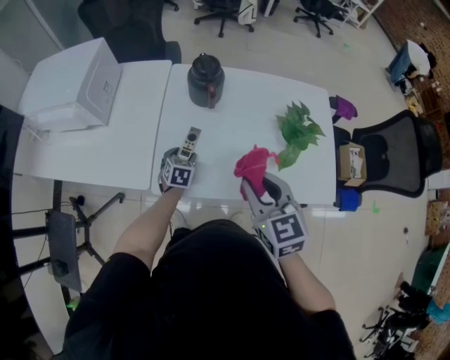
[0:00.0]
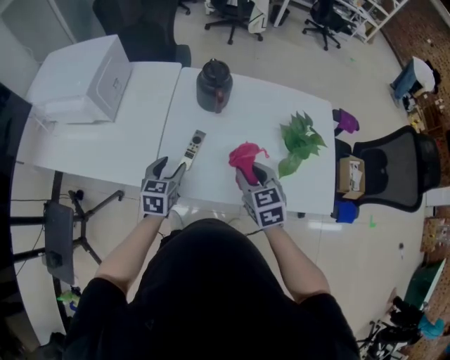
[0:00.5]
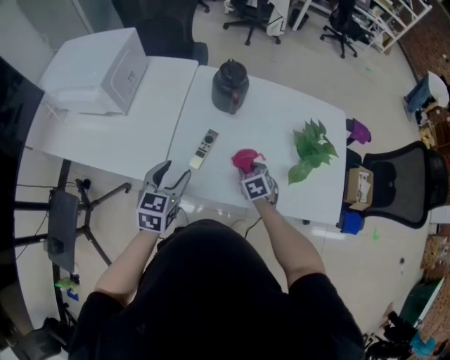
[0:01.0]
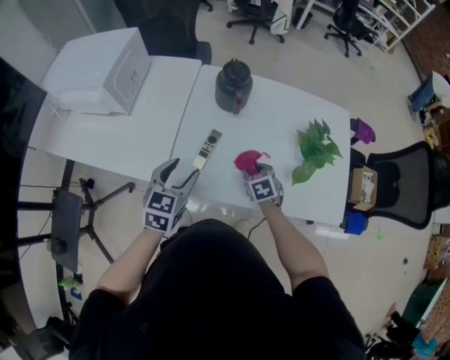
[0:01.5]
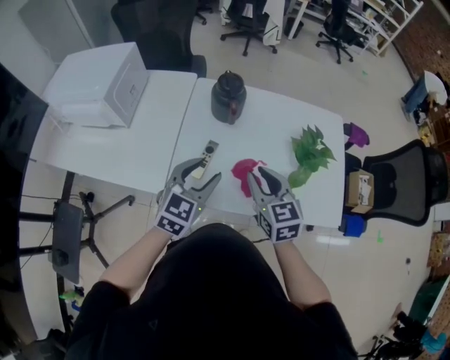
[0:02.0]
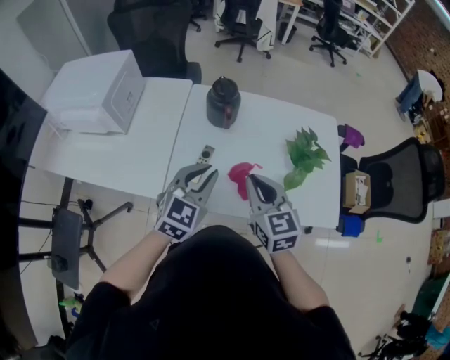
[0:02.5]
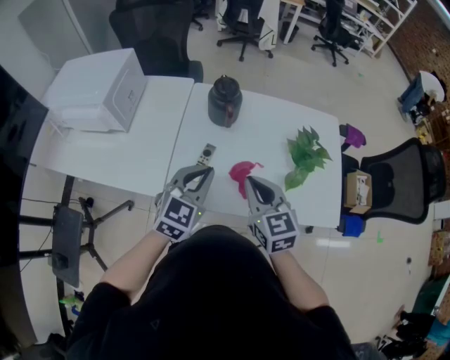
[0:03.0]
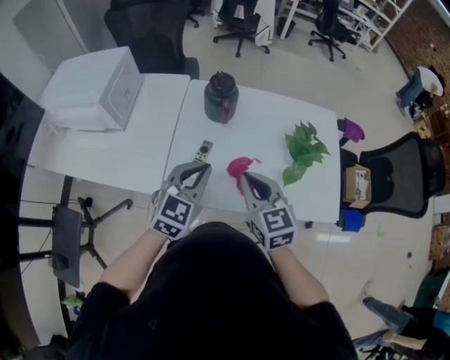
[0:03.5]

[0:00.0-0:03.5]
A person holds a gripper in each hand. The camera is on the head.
0:00.0 to 0:02.0: The right gripper travels forward by roughly 5 cm, and moves roughly 25 cm downward and comes back; the left gripper is displaced upward by roughly 25 cm, and swivels about 30 degrees.
0:02.0 to 0:03.5: The right gripper closes its fingers; the left gripper closes its fingers.

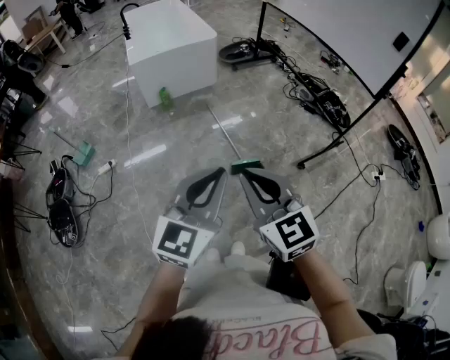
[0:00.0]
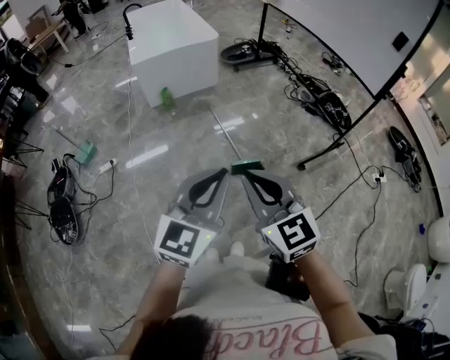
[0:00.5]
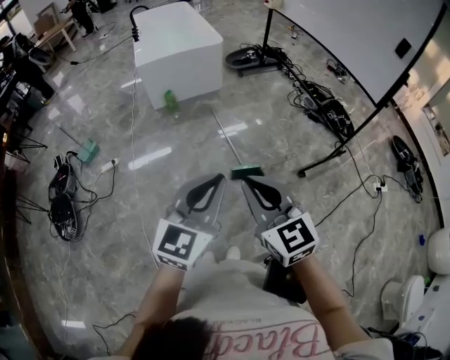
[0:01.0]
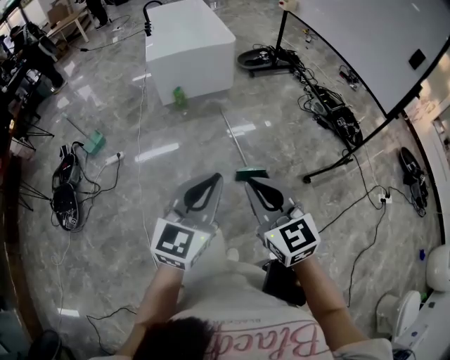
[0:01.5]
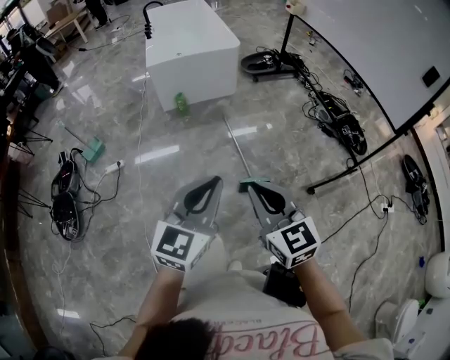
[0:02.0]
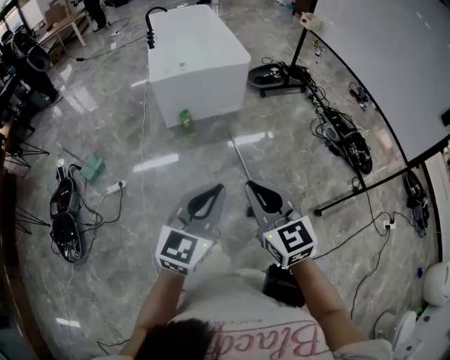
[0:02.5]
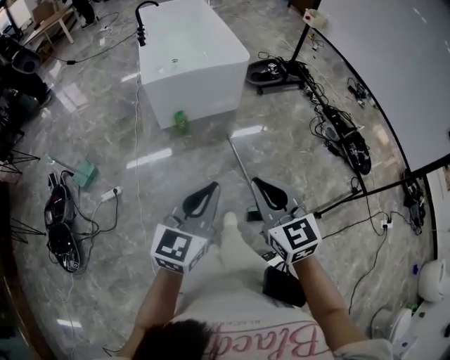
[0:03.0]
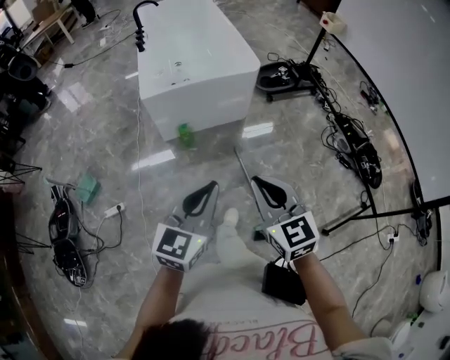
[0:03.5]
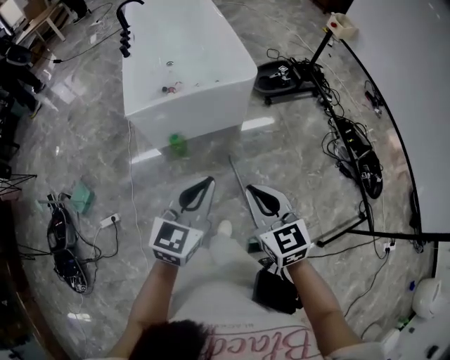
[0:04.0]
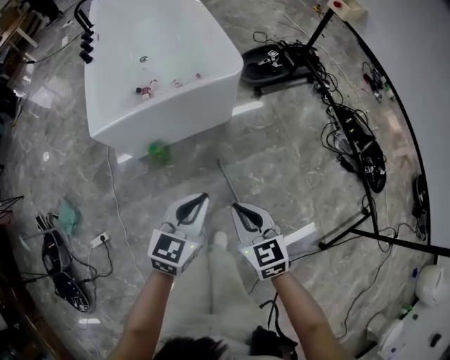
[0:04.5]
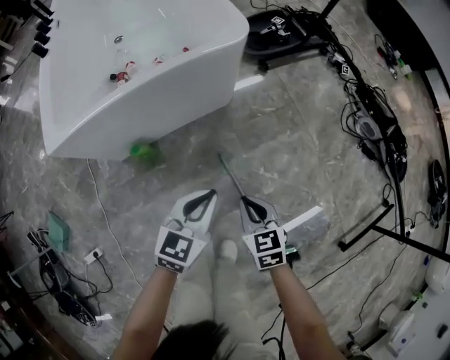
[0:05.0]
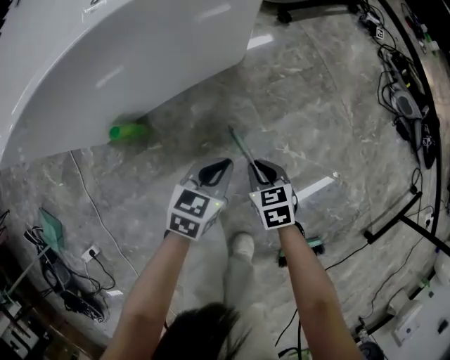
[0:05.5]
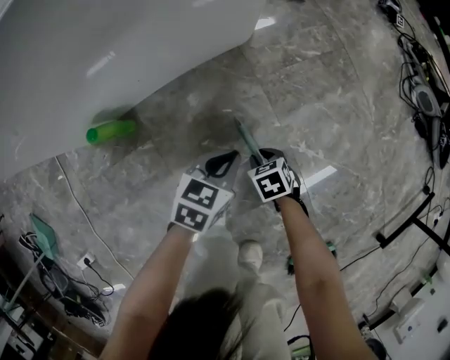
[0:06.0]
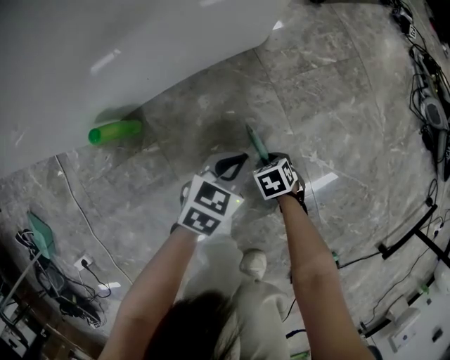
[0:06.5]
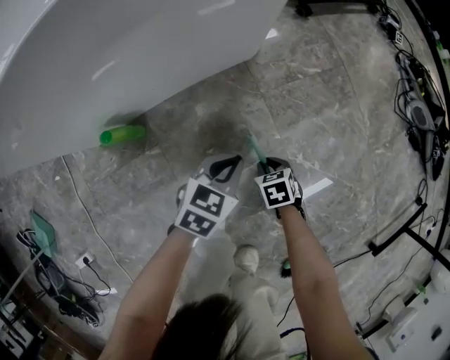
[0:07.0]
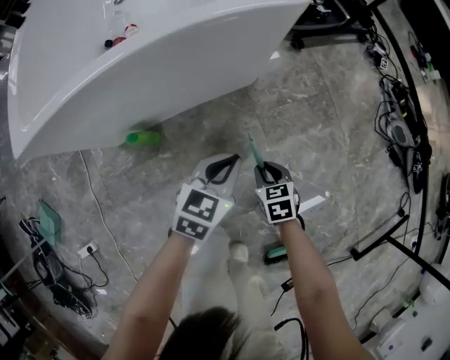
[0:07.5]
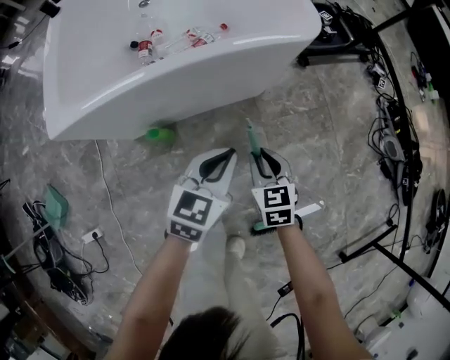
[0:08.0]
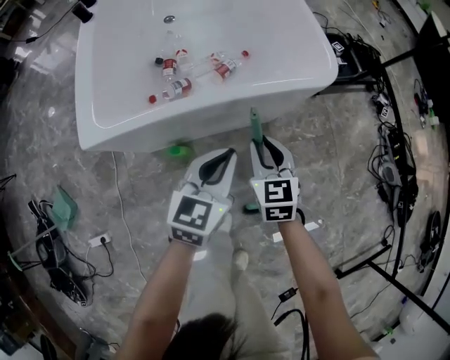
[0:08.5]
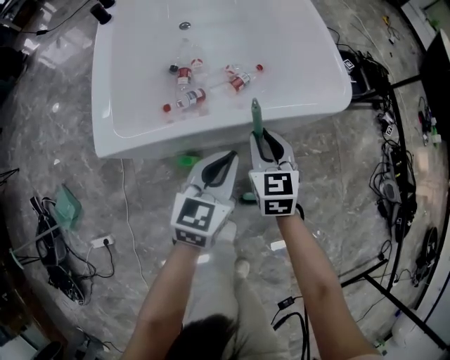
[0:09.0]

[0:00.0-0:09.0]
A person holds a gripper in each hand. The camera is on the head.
0:00.0 to 0:02.0: Both grippers move forward, some 5 cm.
0:02.0 to 0:04.5: The pair of grippers is taken forward, about 50 cm. The left gripper swivels roughly 20 degrees. Meanwhile the right gripper swivels about 20 degrees.
0:04.5 to 0:07.0: The grippers both shift downward by some 50 cm. The right gripper tips its fingers downward by approximately 40 degrees; the left gripper swivels approximately 30 degrees.
0:07.0 to 0:09.0: The left gripper goes about 35 cm upward and to the left, and changes its angle by approximately 40 degrees; the right gripper moves upward, forward and to the left, approximately 50 cm, and tilts its fingers roughly 40 degrees upward.

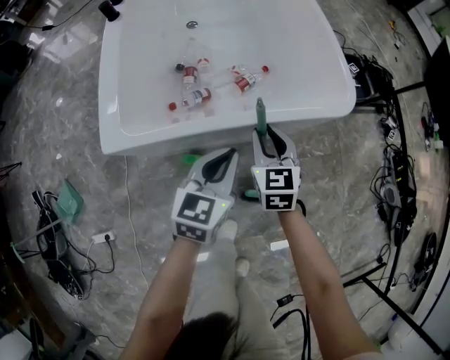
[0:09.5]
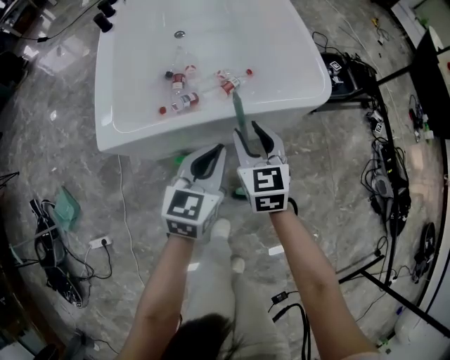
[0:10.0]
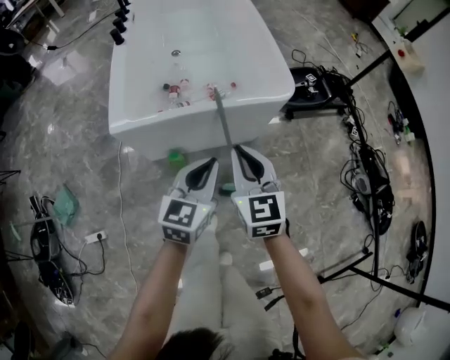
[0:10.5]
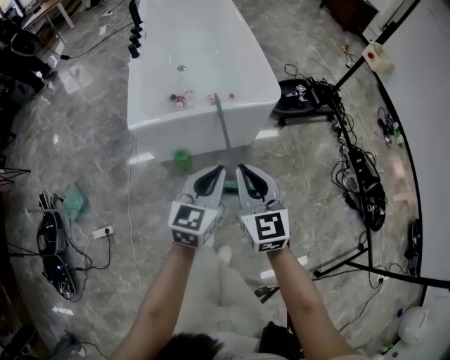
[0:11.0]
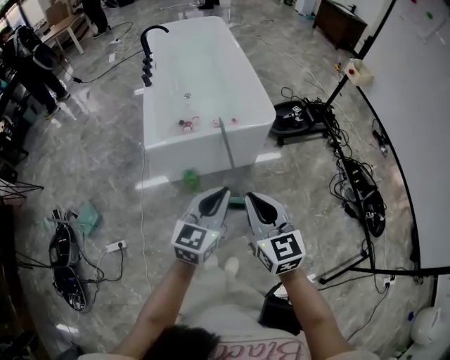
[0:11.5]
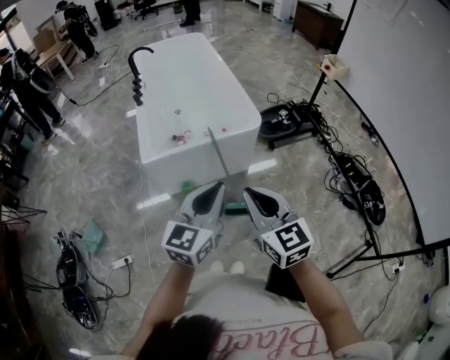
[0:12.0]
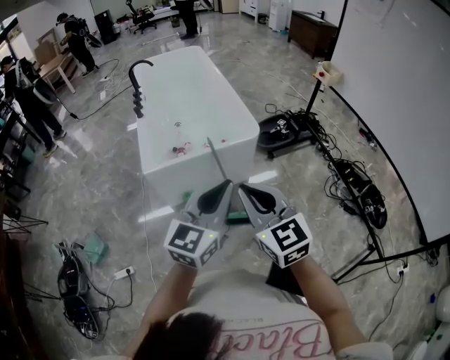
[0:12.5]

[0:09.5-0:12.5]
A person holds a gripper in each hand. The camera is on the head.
0:09.5 to 0:11.0: The left gripper travels backward and upward by about 25 cm. The right gripper is displaced upward and backward by some 35 cm, and closes up.
0:11.0 to 0:12.5: The right gripper travels upward and backward by some 15 cm. Meanwhile the left gripper moves upward, roughly 20 cm, and swivels some 20 degrees.

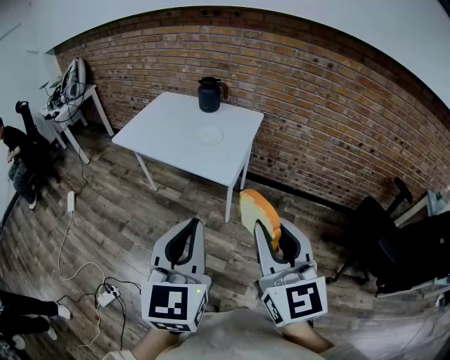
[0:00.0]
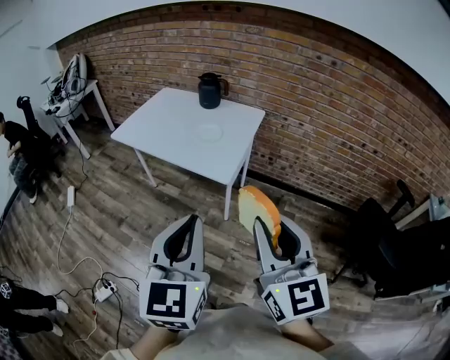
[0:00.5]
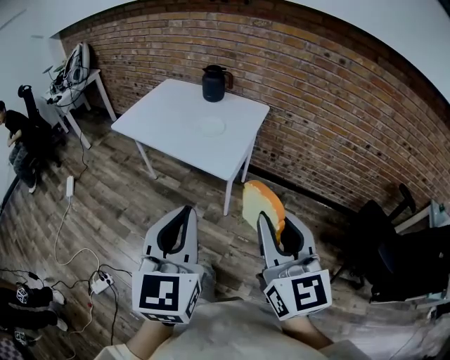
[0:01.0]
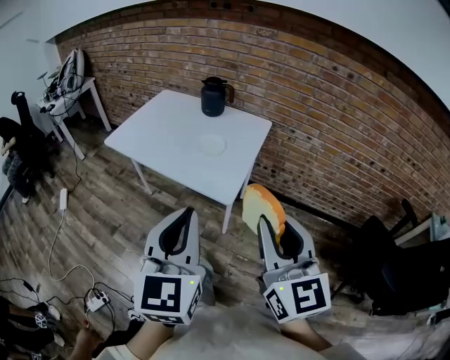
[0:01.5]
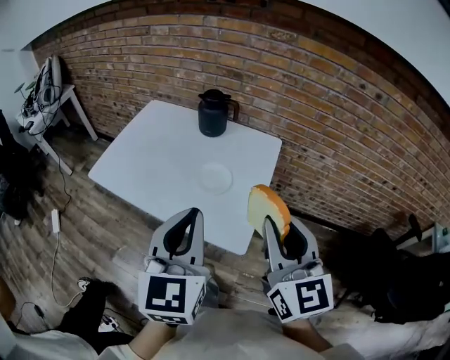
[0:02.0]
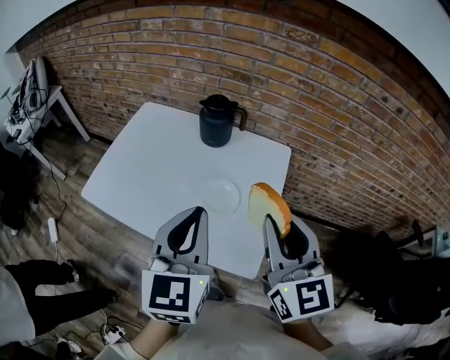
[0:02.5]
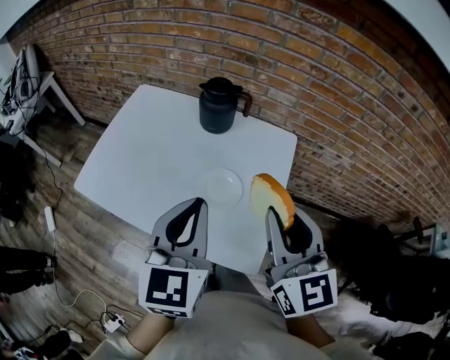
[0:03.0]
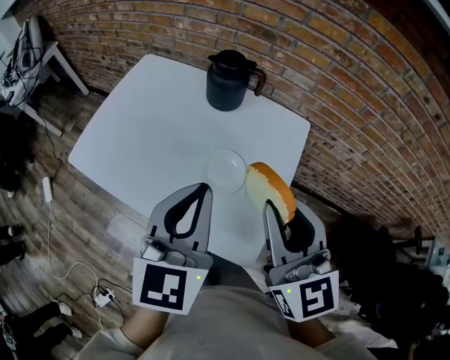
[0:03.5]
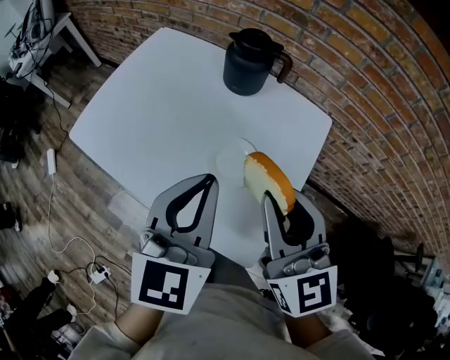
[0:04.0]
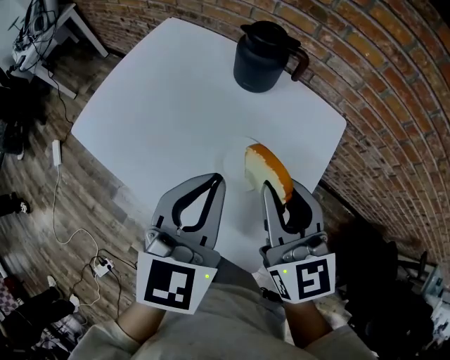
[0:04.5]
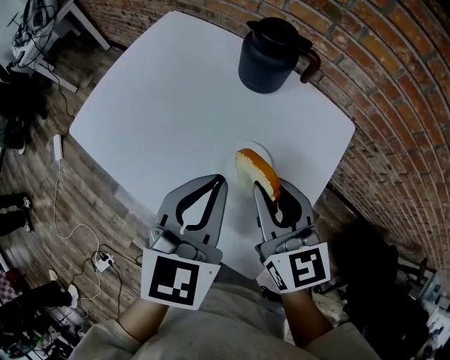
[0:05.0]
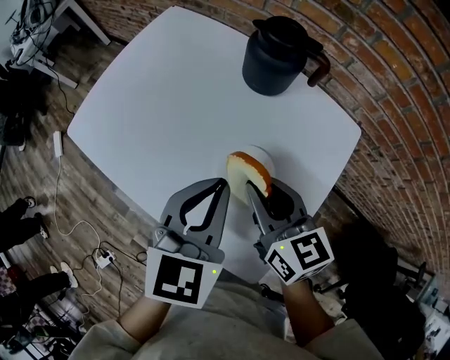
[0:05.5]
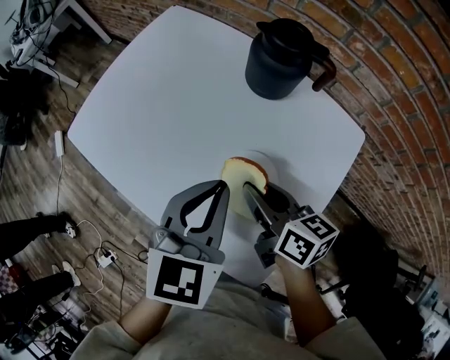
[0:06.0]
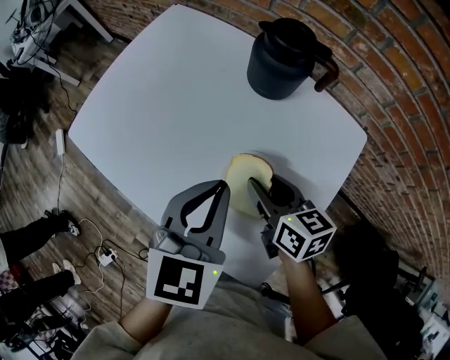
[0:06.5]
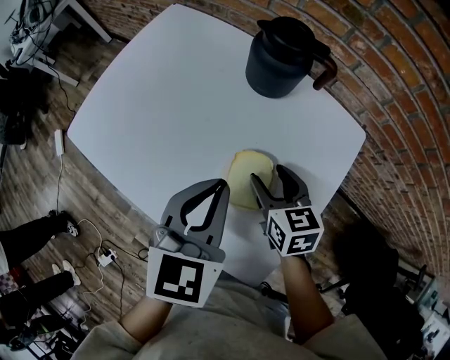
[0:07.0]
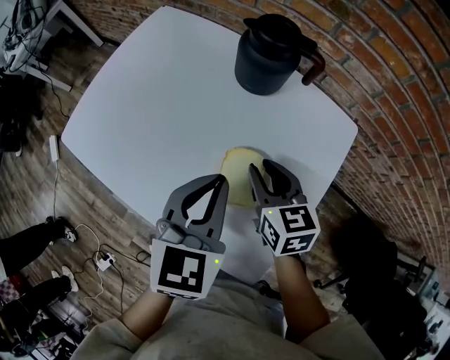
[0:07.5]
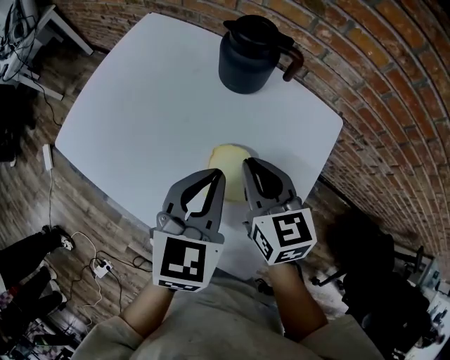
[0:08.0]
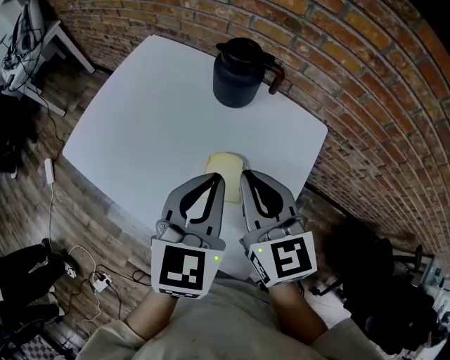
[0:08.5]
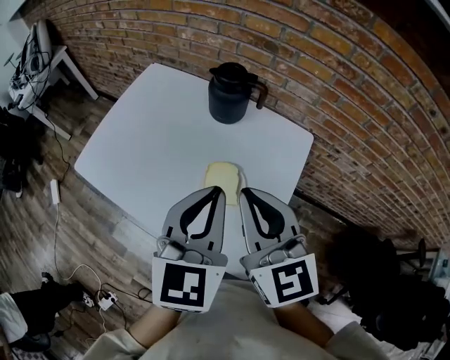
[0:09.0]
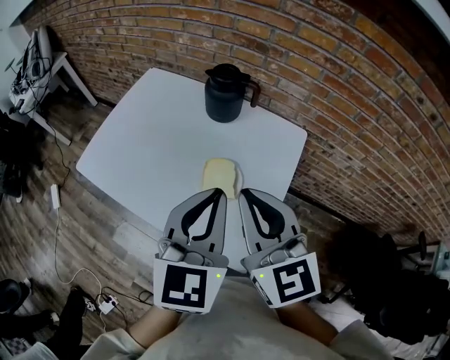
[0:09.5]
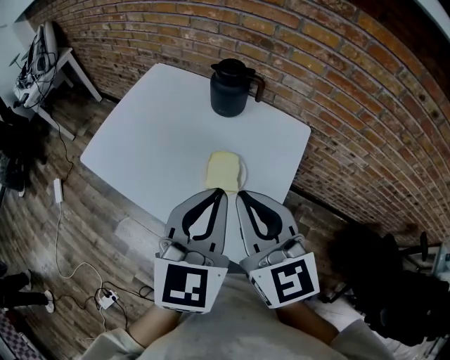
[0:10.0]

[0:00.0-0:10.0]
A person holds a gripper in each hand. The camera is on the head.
0:00.0 to 0:02.0: Both grippers travel together forward, about 35 cm.
0:02.0 to 0:04.0: Both grippers move forward and downward, approximately 20 cm.
0:04.0 to 0:06.0: The right gripper goes about 20 cm downward and forward, and rotates roughly 50 degrees. The left gripper goes roughly 10 cm downward and forward.
0:06.0 to 0:08.0: The right gripper shifts by about 5 cm, rotates about 30 degrees, and opens, then closes again.
0:08.0 to 0:10.0: The two grippers go some 20 cm upward and backward. The right gripper turns by approximately 20 degrees.
